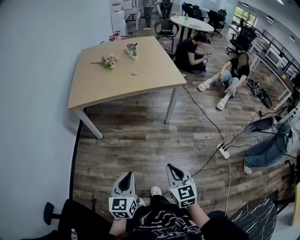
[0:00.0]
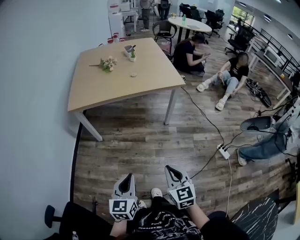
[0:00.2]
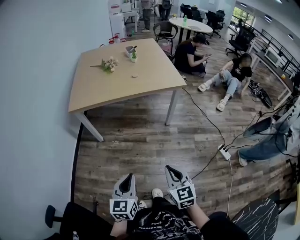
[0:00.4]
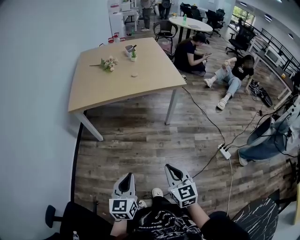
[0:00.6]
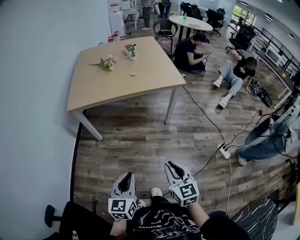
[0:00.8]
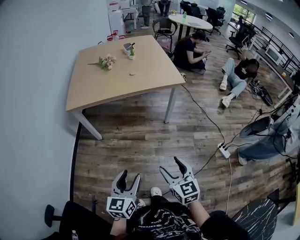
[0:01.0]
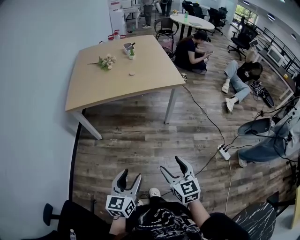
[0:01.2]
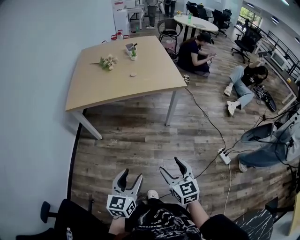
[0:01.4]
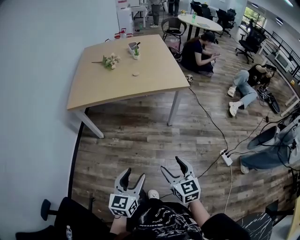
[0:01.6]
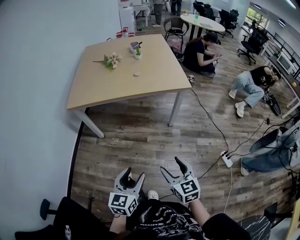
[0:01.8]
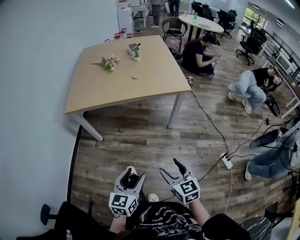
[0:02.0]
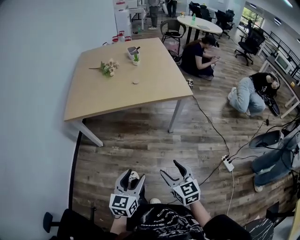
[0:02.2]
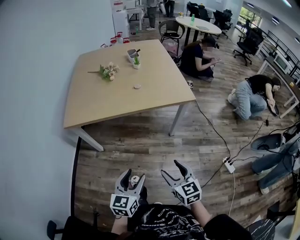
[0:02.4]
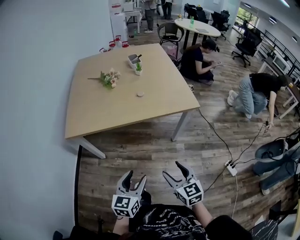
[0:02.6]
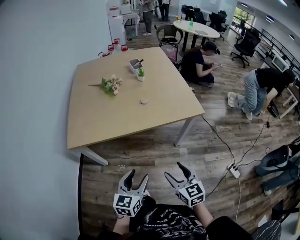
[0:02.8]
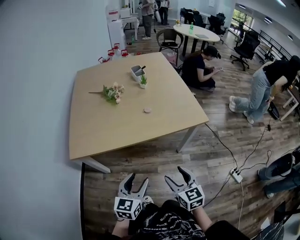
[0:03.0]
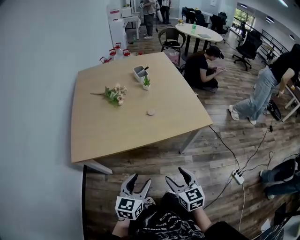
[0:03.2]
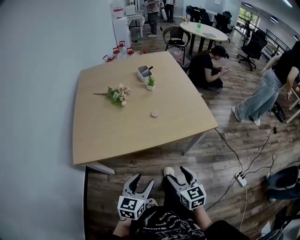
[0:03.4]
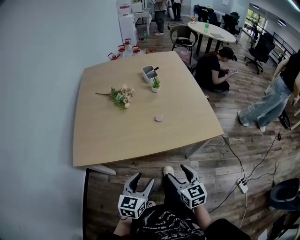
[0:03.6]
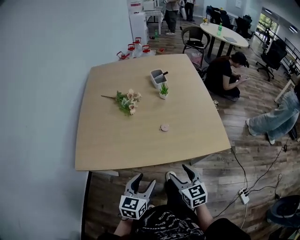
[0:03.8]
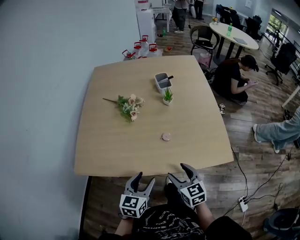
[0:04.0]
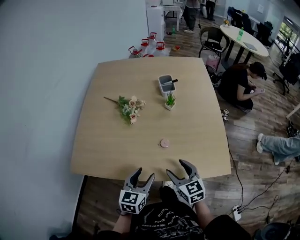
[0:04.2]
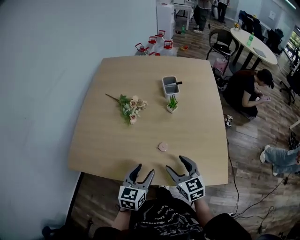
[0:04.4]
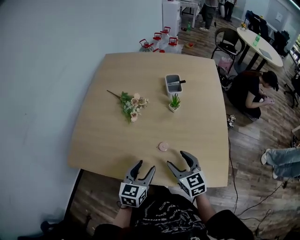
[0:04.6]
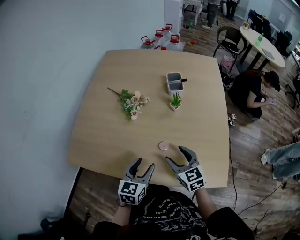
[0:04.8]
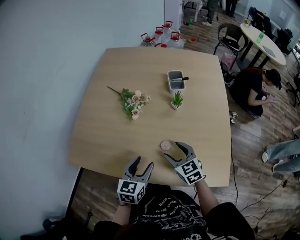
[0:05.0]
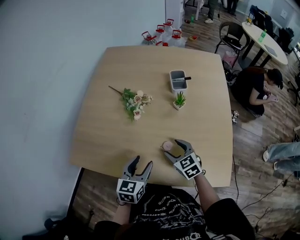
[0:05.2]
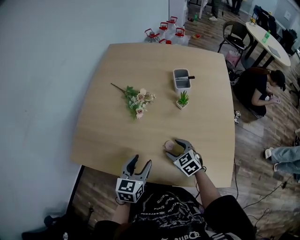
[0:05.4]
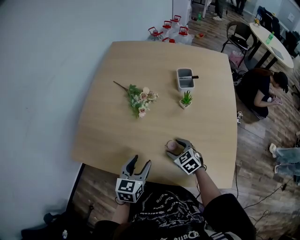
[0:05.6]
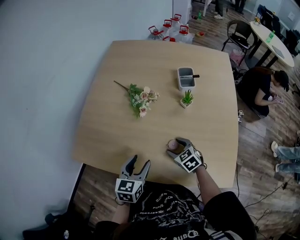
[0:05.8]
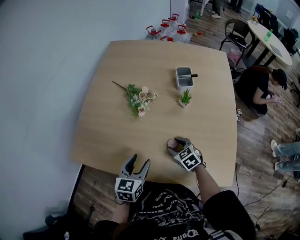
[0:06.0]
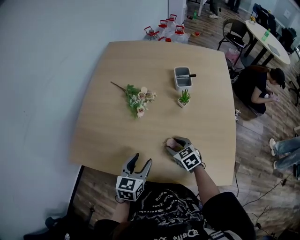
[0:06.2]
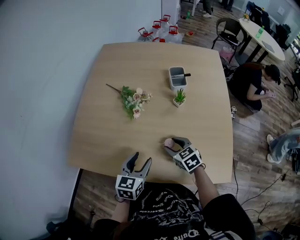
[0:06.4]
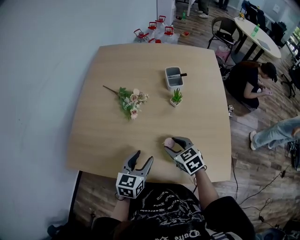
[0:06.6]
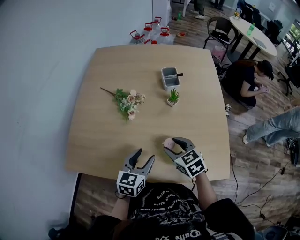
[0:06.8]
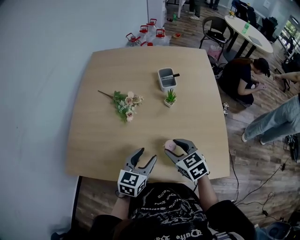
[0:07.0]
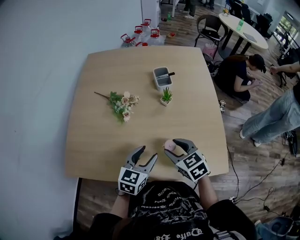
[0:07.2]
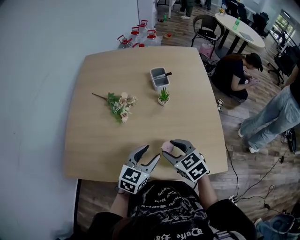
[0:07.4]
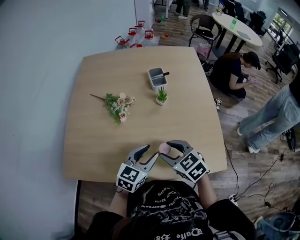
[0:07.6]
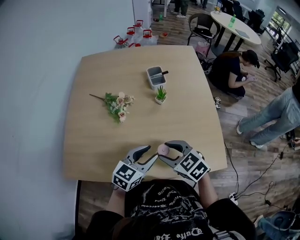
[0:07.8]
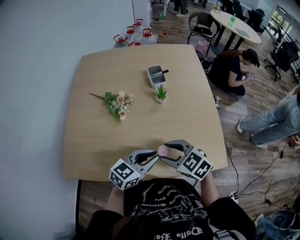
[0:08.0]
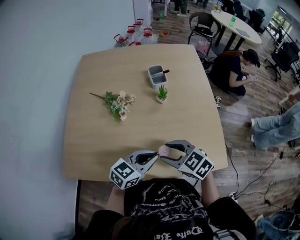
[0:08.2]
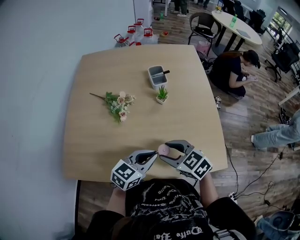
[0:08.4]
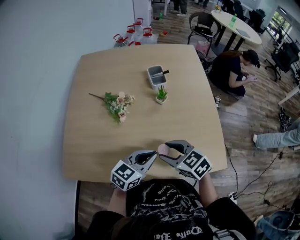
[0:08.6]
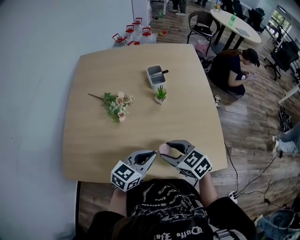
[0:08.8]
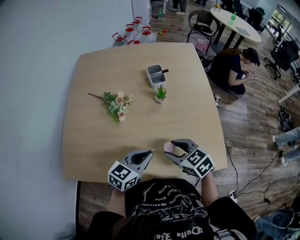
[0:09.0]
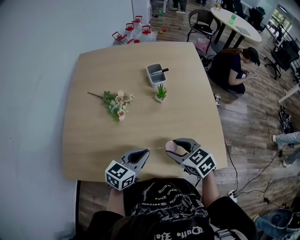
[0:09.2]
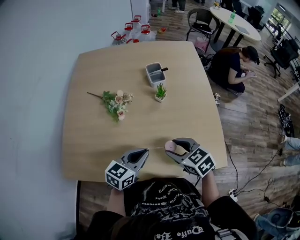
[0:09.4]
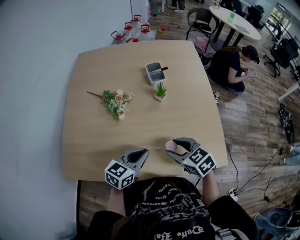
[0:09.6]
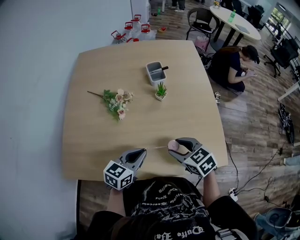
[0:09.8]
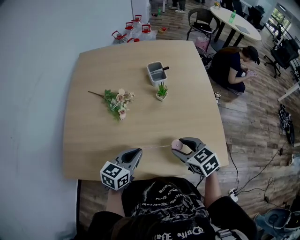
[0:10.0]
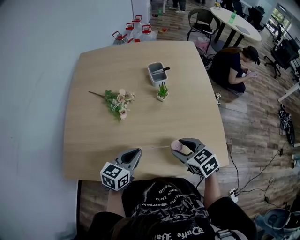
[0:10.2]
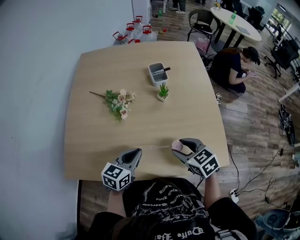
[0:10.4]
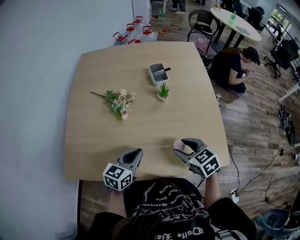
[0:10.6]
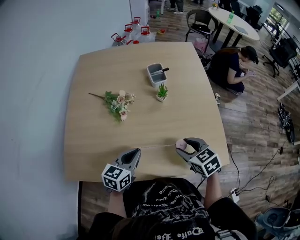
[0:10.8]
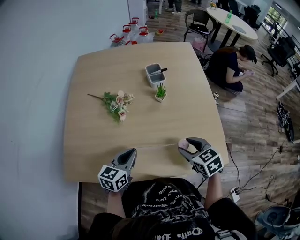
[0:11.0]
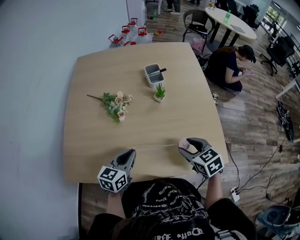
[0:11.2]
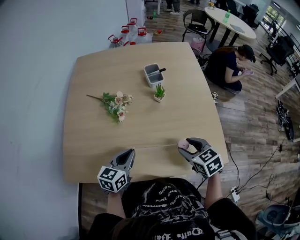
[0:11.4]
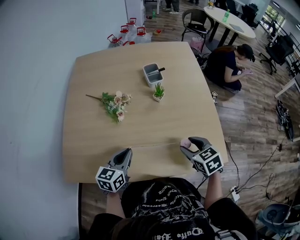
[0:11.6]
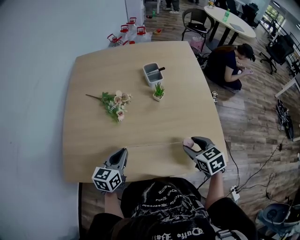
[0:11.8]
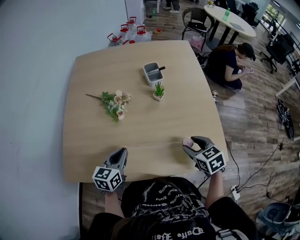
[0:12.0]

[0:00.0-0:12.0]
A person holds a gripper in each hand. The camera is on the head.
0:00.0 to 0:01.6: The right gripper moves forward and to the right, some 10 cm, and opens its fingers. Meanwhile the left gripper shifts roughly 10 cm to the right and forward, and opens its fingers.
0:01.6 to 0:03.0: The right gripper is displaced forward and to the left by some 30 cm. The left gripper is displaced forward by approximately 30 cm.
0:03.0 to 0:04.4: The two grippers go approximately 35 cm forward. The right gripper turns by approximately 20 degrees.
0:04.4 to 0:06.0: The left gripper is displaced forward by about 5 cm, while the right gripper moves downward and forward, approximately 15 cm, and swivels roughly 30 degrees.
0:06.0 to 0:07.6: The left gripper travels to the right by approximately 10 cm, and rotates approximately 30 degrees; the right gripper is displaced upward and backward by about 15 cm.
0:07.6 to 0:09.0: The left gripper closes its fingers.
0:09.0 to 0:10.4: The left gripper shifts some 5 cm to the left.
0:10.4 to 0:12.0: The right gripper heads to the right, covering approximately 5 cm. Meanwhile the left gripper is displaced to the left by about 5 cm.

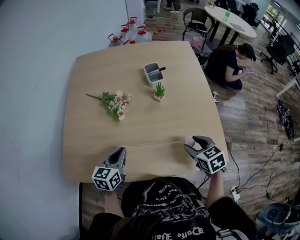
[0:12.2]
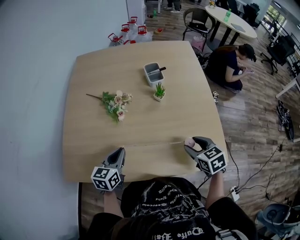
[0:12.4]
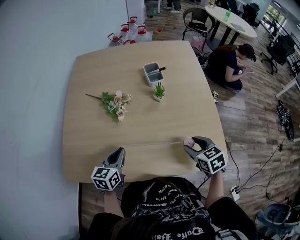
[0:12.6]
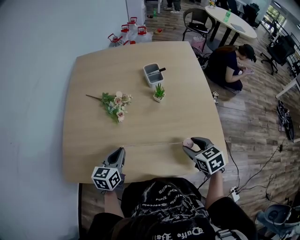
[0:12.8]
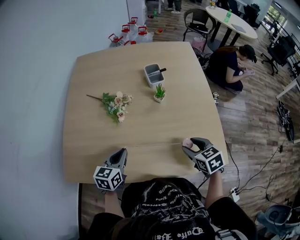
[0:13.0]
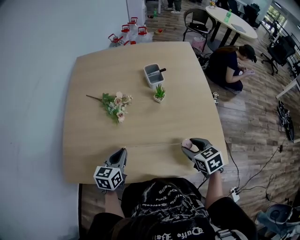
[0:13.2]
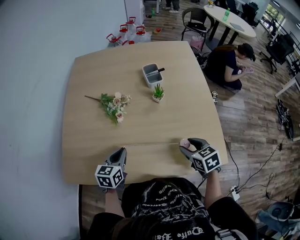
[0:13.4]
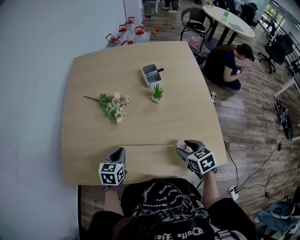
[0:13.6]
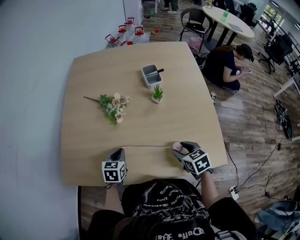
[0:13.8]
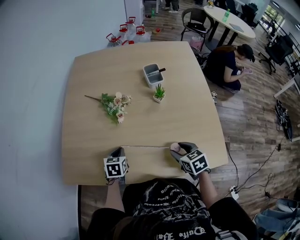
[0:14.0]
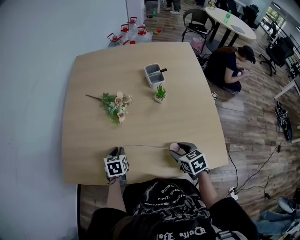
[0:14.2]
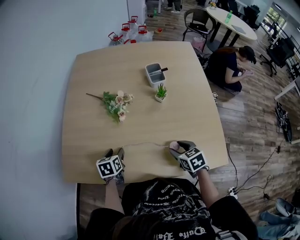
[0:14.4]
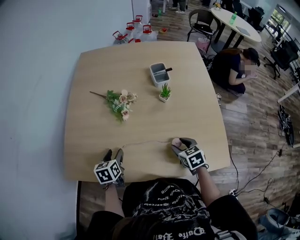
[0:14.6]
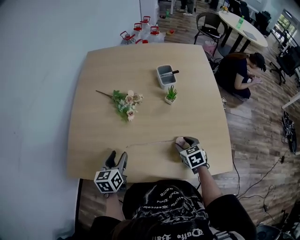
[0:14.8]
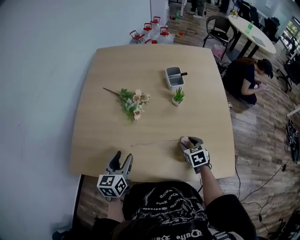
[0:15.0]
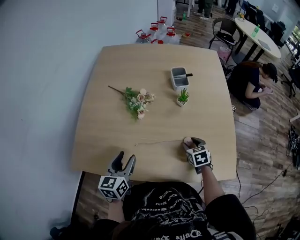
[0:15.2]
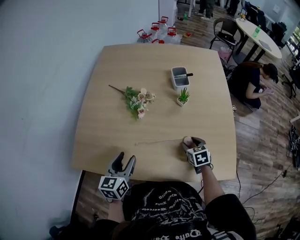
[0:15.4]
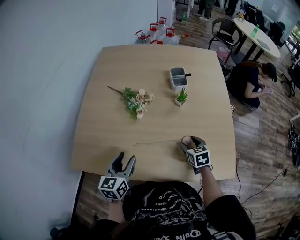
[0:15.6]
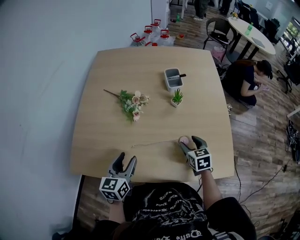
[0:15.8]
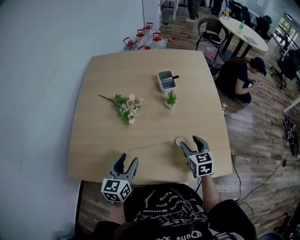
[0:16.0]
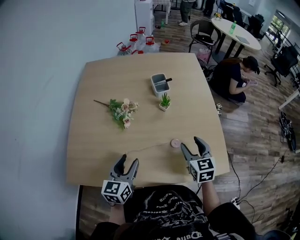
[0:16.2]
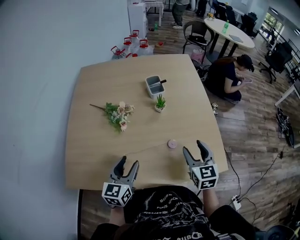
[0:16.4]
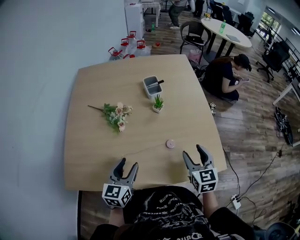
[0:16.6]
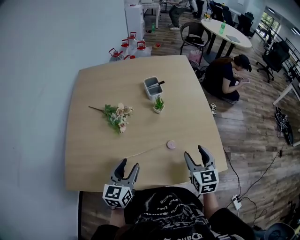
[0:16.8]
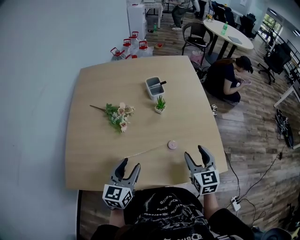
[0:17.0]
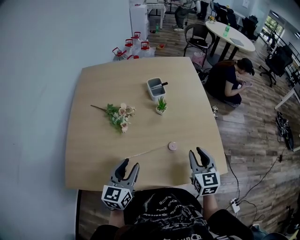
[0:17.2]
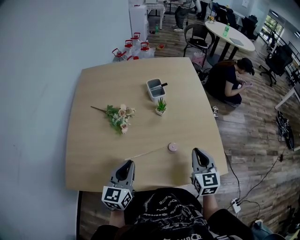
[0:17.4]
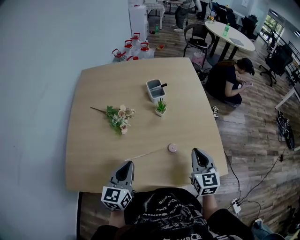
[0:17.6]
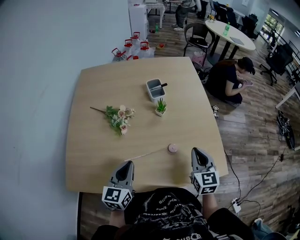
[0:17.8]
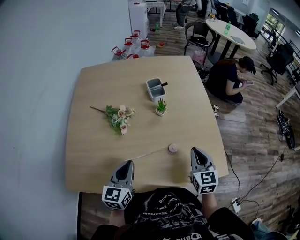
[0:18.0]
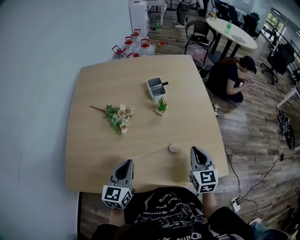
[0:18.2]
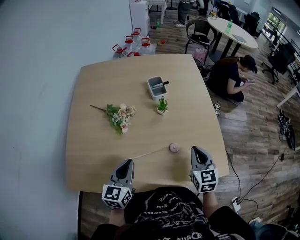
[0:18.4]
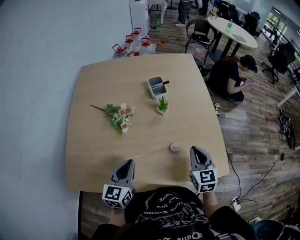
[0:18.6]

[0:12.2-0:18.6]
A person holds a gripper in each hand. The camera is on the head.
0:12.2 to 0:13.8: The right gripper travels downward by approximately 5 cm, while the left gripper travels downward by some 10 cm, and turns by approximately 20 degrees.
0:13.8 to 0:15.4: The right gripper travels forward and downward by roughly 10 cm. The left gripper moves upward and backward, about 10 cm, turns by about 20 degrees, and opens.
0:15.4 to 0:17.0: The right gripper heads upward and backward, covering some 20 cm, and rotates roughly 30 degrees. Meanwhile the left gripper heads to the right, covering approximately 10 cm.
0:17.0 to 0:18.6: The right gripper closes up. Meanwhile the left gripper closes.

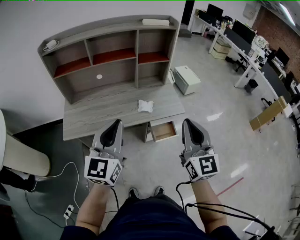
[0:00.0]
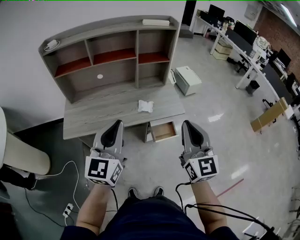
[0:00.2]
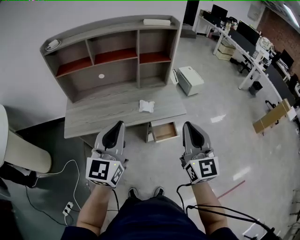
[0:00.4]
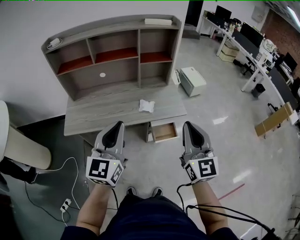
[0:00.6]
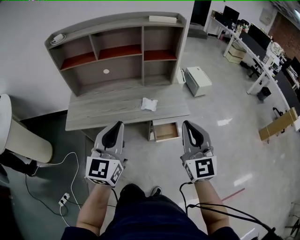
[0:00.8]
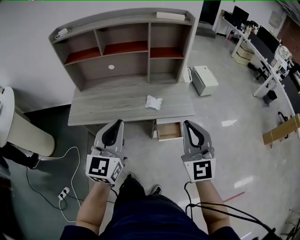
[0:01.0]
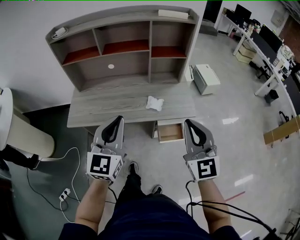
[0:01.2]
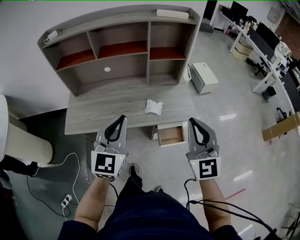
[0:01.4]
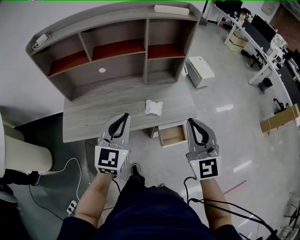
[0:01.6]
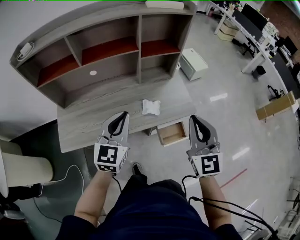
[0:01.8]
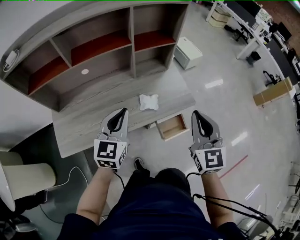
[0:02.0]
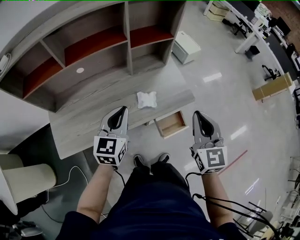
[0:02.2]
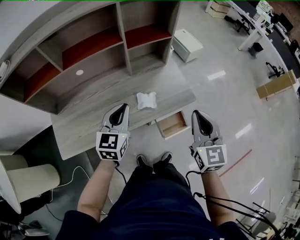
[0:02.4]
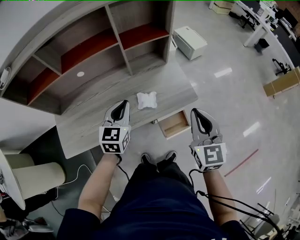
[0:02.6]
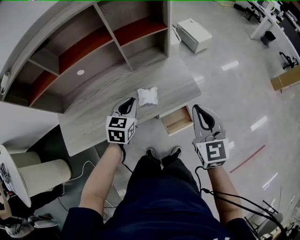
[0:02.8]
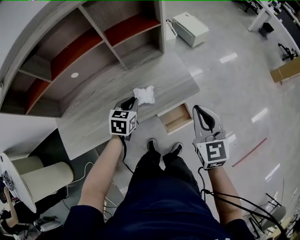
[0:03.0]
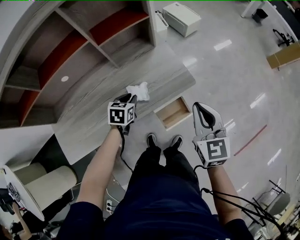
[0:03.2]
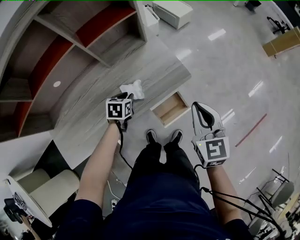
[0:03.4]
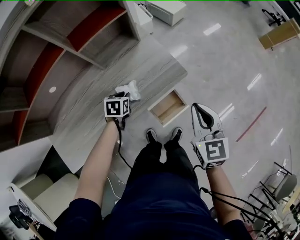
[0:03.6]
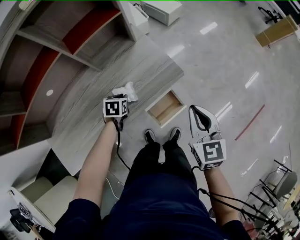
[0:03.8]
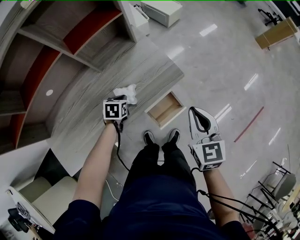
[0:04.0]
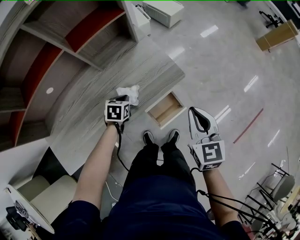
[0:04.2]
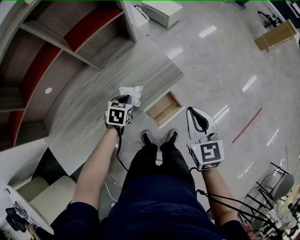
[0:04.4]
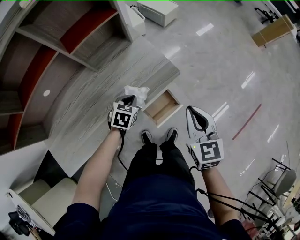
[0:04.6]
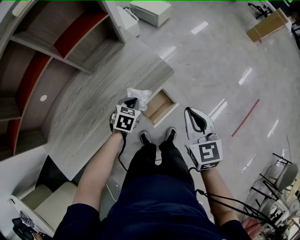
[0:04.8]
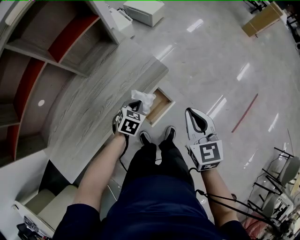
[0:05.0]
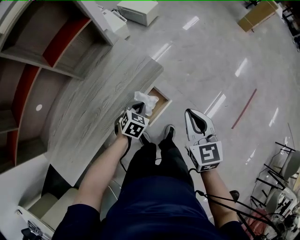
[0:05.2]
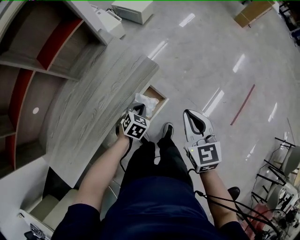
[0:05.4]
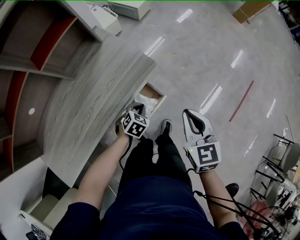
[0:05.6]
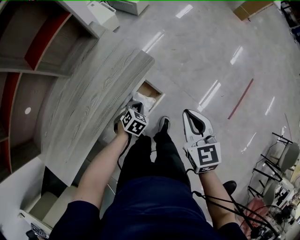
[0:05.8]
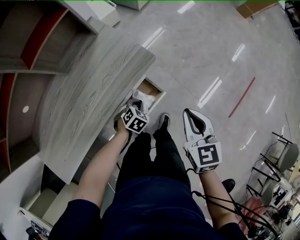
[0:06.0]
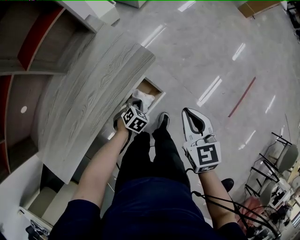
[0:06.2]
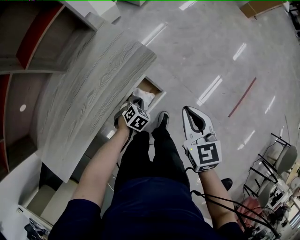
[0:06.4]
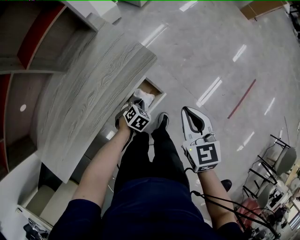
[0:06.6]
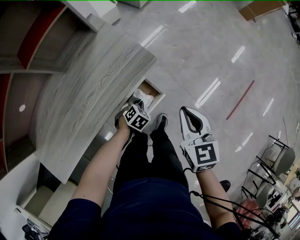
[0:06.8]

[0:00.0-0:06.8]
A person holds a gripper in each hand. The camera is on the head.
0:00.0 to 0:01.4: Both grippers move forward, roughly 10 cm.
0:01.4 to 0:02.8: The left gripper heads downward and forward, covering roughly 30 cm, and points its fingers approximately 30 degrees further downward. The right gripper is displaced downward and forward by some 15 cm, and changes its angle by approximately 30 degrees.
0:02.8 to 0:04.0: The right gripper shifts some 10 cm downward and to the right, and swivels roughly 20 degrees, while the left gripper is displaced downward by about 20 cm, and changes its angle by roughly 30 degrees.
0:04.0 to 0:05.4: The right gripper moves to the right and backward, about 10 cm, while the left gripper travels to the right by some 20 cm, and changes its angle by some 40 degrees.
0:05.4 to 0:06.8: The left gripper goes some 10 cm downward; the right gripper moves roughly 5 cm.
